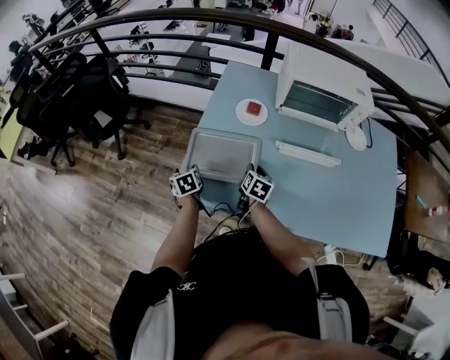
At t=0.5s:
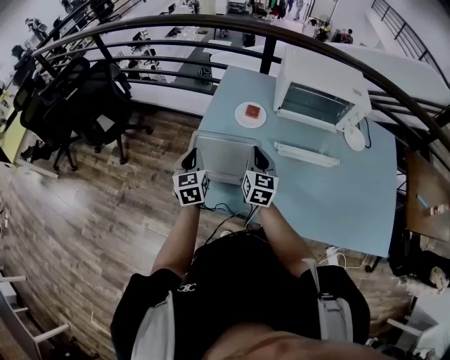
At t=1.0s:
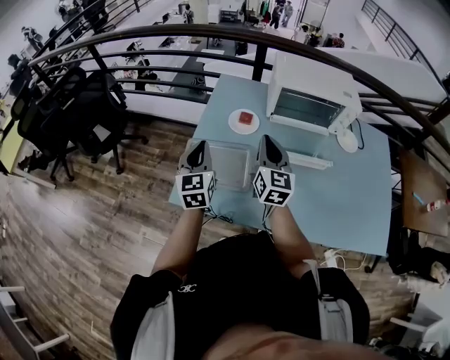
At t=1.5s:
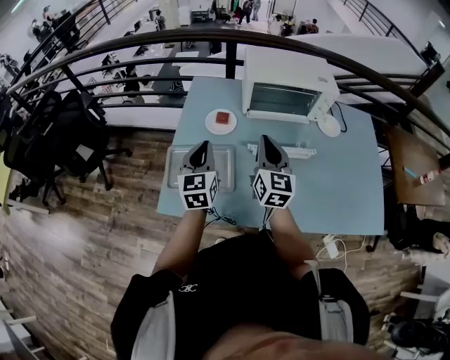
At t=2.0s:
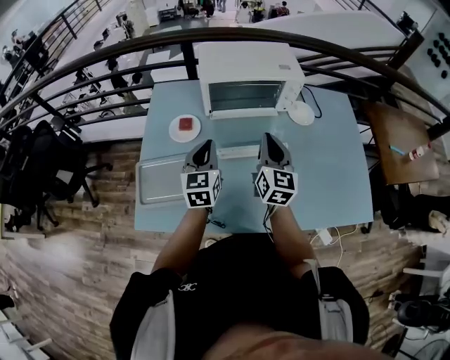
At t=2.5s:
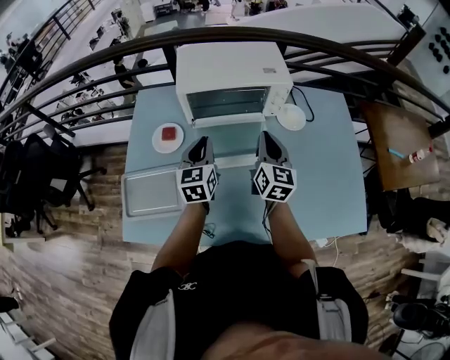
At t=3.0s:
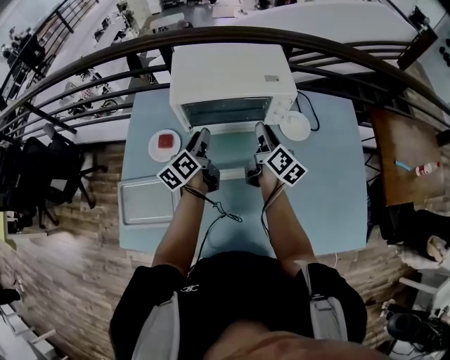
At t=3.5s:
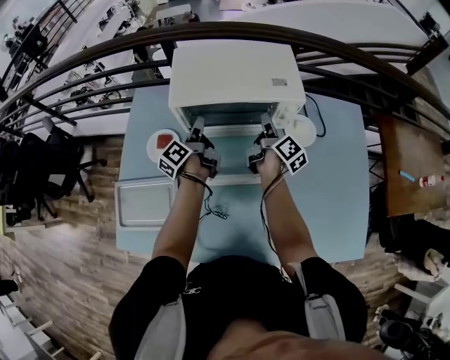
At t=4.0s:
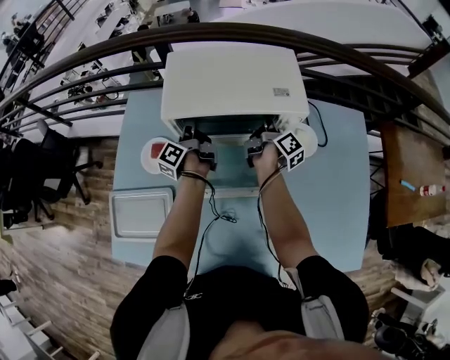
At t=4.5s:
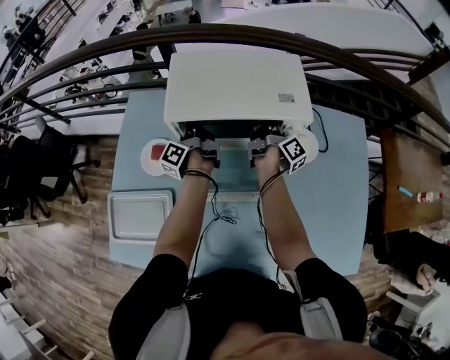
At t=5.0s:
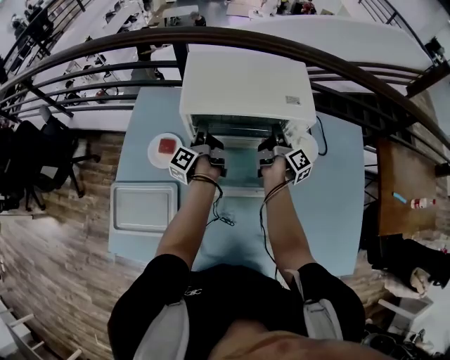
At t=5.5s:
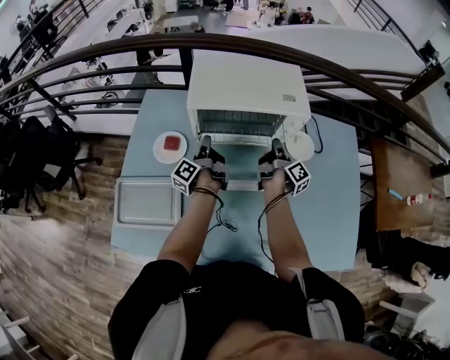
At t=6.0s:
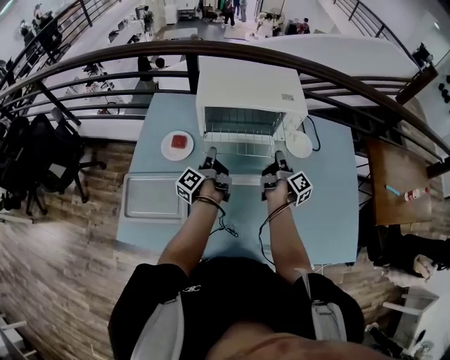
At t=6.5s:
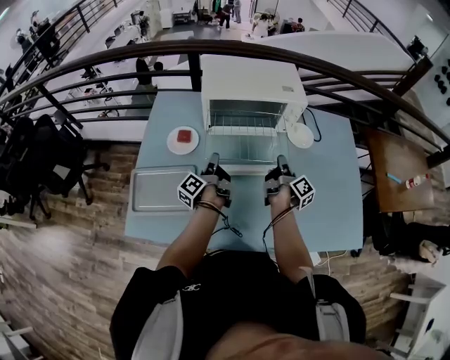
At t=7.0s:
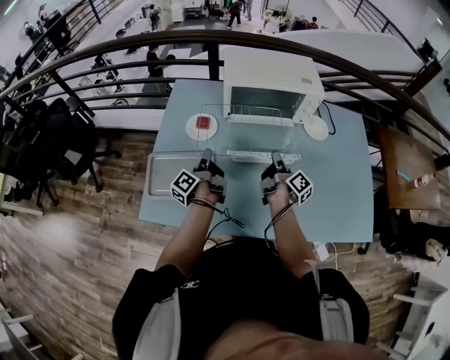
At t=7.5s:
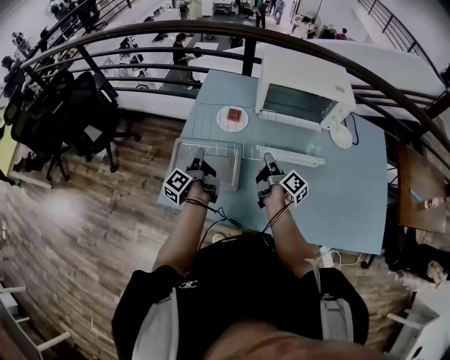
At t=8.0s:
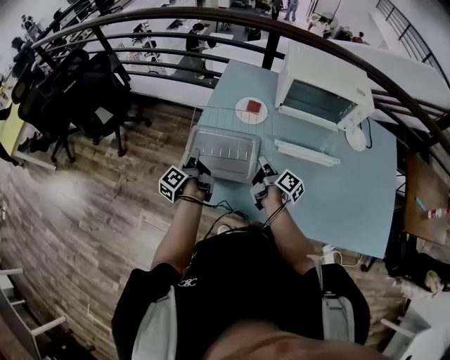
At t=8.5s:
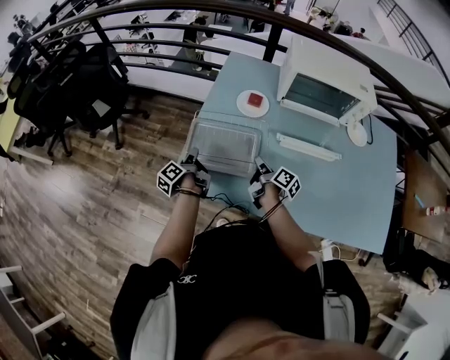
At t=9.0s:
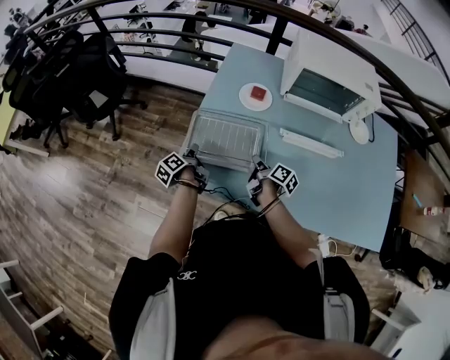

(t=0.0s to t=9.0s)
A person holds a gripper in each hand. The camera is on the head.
t=0.0s - t=2.0s: The right gripper travels upward and to the right by about 35 cm, points its fingers approximately 40 degrees further upward, and closes its fingers, while the left gripper heads to the right and upward, covering about 40 cm, tips its fingers upward by roughly 40 degrees, and closes its fingers.
t=2.0s - t=4.5s: The right gripper goes some 35 cm forward and downward, rotates around the line of its fingers by roughly 80 degrees, clockwise from behind, and opens, then closes once more, while the left gripper shifts roughly 30 cm forward, rotates around the line of its fingers by some 80 degrees, counterclockwise from behind, and opens and closes again.
t=4.5s - t=7.0s: The two grippers go roughly 30 cm backward and to the left.
t=7.0s - t=9.0s: Both grippers move to the left and downward, approximately 30 cm. The right gripper rotates some 30 degrees. Meanwhile the left gripper swivels some 30 degrees.

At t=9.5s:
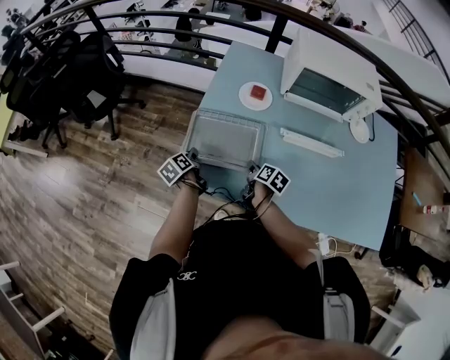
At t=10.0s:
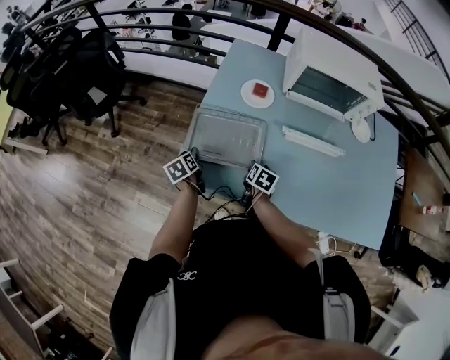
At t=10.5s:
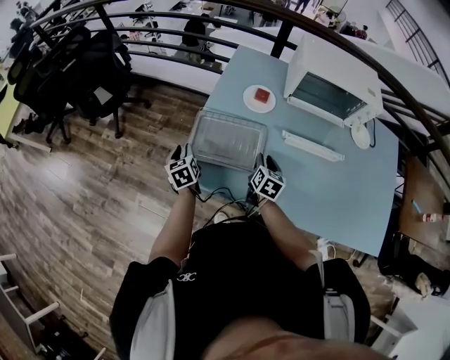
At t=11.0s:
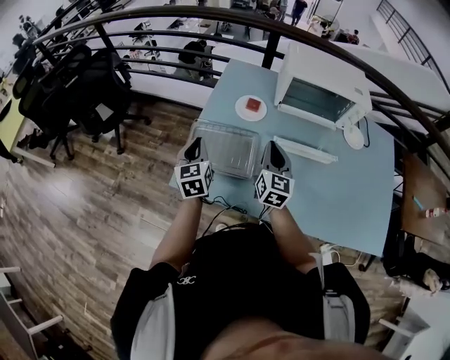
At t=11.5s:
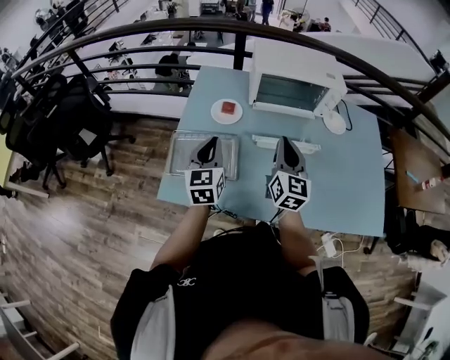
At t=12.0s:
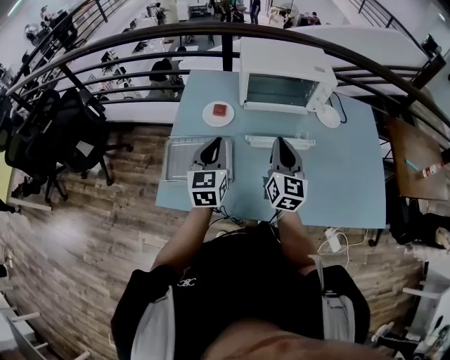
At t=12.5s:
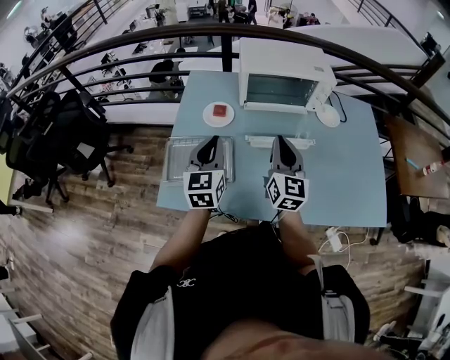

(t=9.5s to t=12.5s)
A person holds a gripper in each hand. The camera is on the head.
t=9.5s - t=11.0s: The two grippers go some 20 cm upward. The right gripper tilts its fingers approximately 40 degrees upward, and closes up, while the left gripper rotates around the line of its fingers by some 50 degrees, clockwise from behind.
t=11.0s - t=12.5s: The two grippers go some 15 cm to the right and upward. The left gripper changes its angle by approximately 20 degrees.

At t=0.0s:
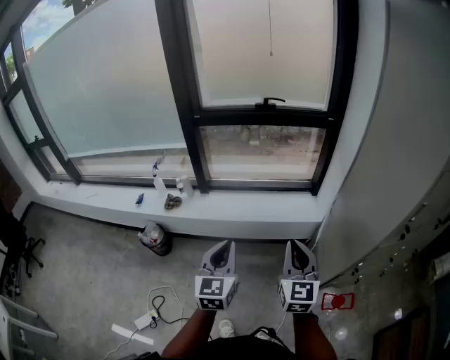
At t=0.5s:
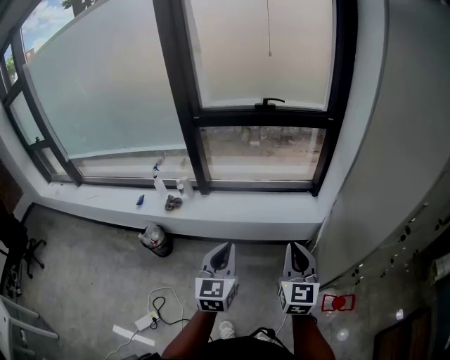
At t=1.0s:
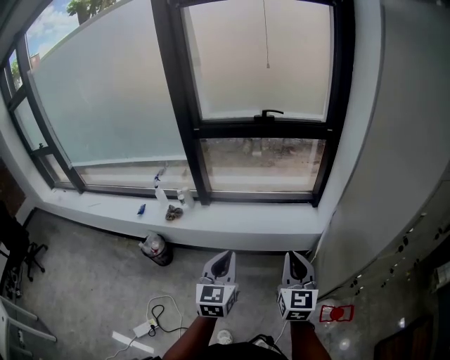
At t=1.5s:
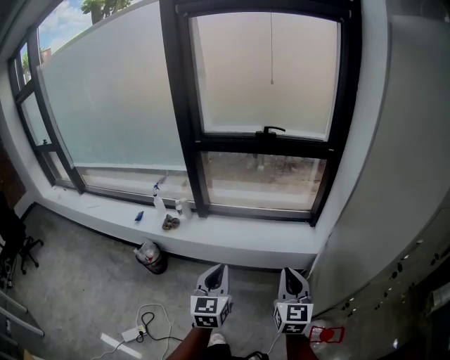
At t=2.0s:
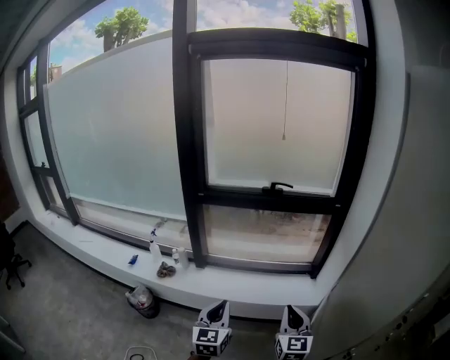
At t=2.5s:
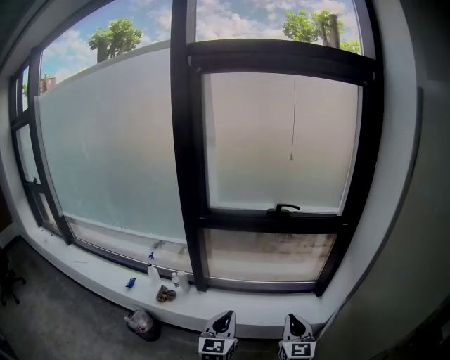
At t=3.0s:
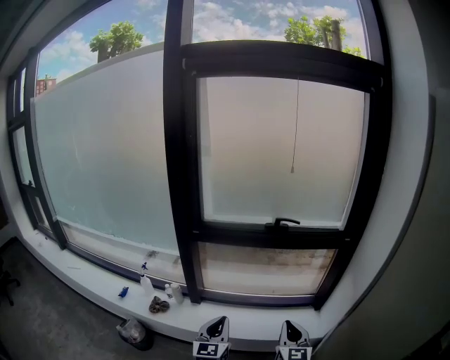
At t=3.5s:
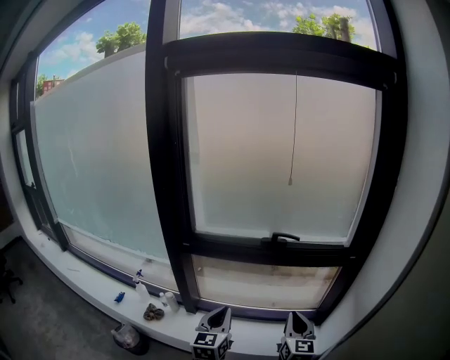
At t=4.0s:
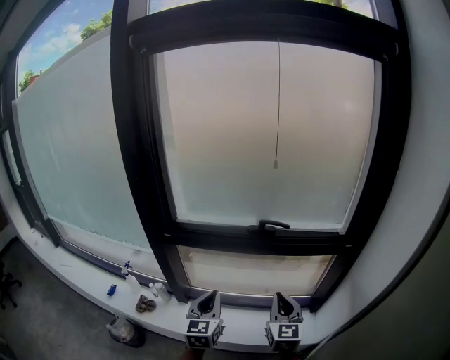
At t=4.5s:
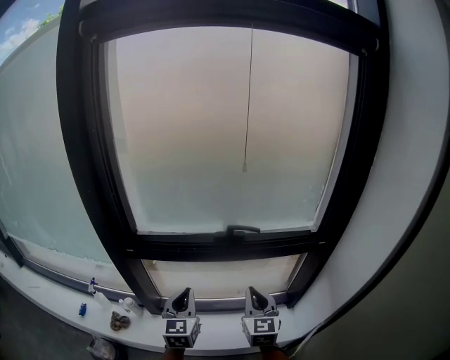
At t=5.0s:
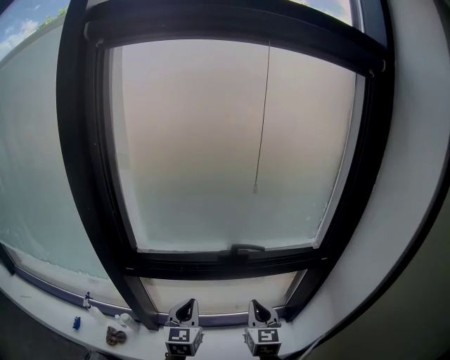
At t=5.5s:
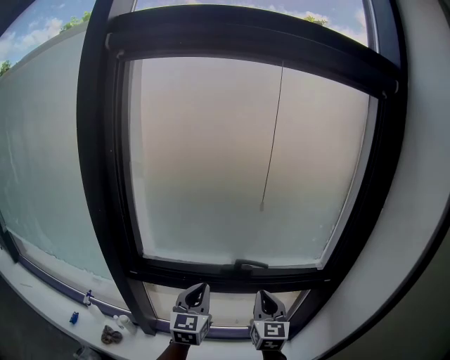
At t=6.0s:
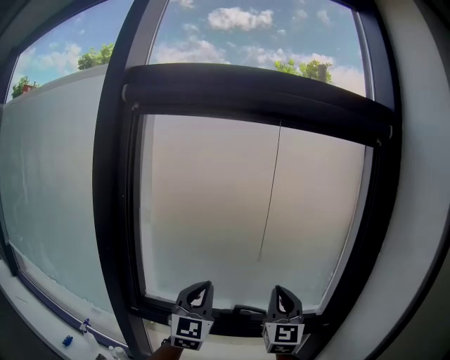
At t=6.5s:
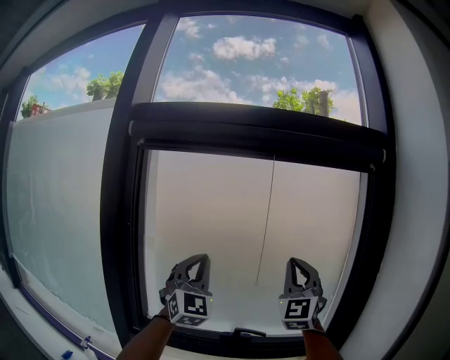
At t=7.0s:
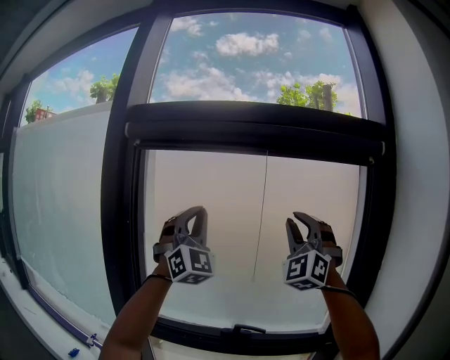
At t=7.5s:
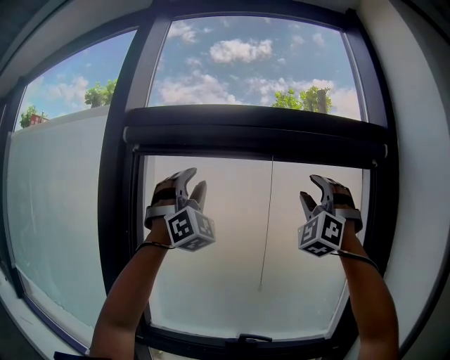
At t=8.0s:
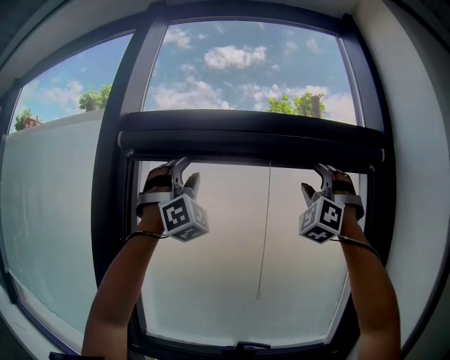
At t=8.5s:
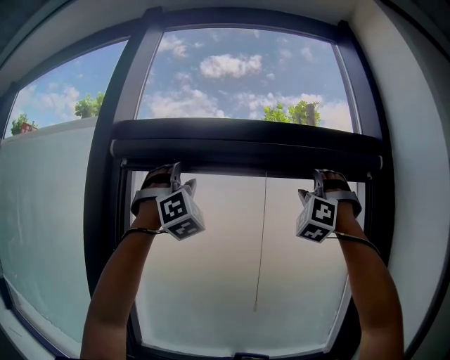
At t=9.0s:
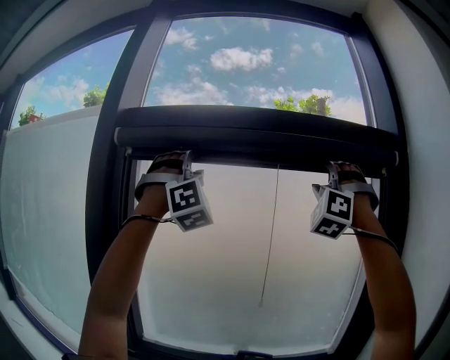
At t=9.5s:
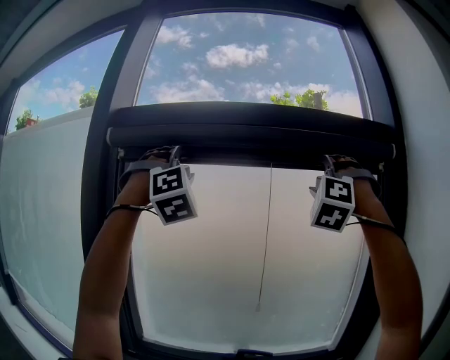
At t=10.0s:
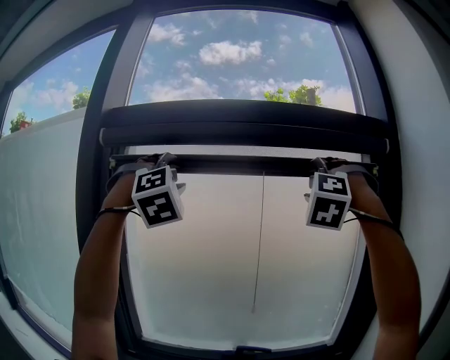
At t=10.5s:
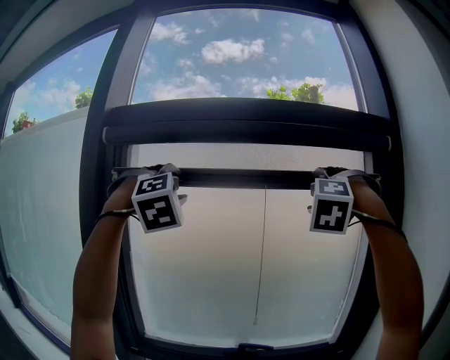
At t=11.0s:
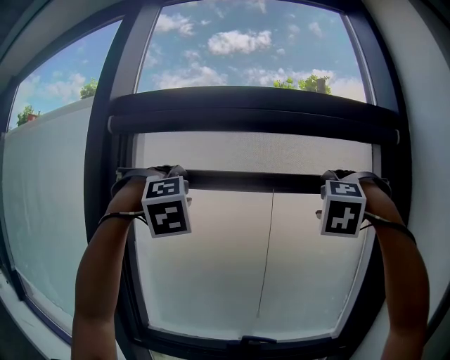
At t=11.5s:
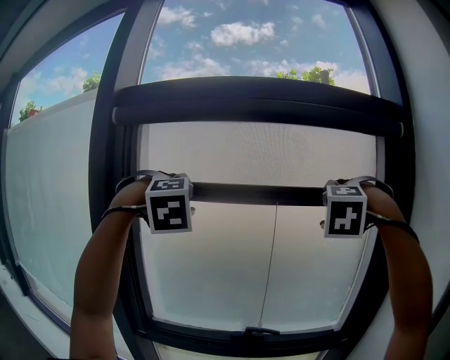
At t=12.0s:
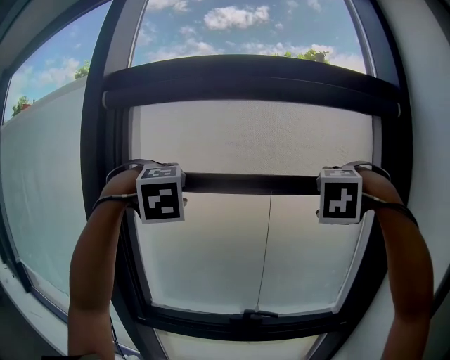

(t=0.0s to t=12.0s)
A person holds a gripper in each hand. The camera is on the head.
t=0.0s - t=2.0s: Both grippers move forward, approximately 15 cm.
t=2.0s - t=4.0s: Both grippers move forward, approximately 35 cm.
t=4.0s - t=6.0s: Both grippers travel together upward and forward, roughly 30 cm. The right gripper swivels roughly 30 degrees; the left gripper rotates approximately 30 degrees.
t=6.0s - t=8.0s: The two grippers go some 40 cm upward. The right gripper twists about 70 degrees counterclockwise, seen from behind, and opens up. Meanwhile the left gripper rolls clockwise, seen from behind, by about 70 degrees, and opens up.
t=8.0s - t=10.0s: The left gripper tilts its fingers approximately 30 degrees downward. Meanwhile the right gripper angles its fingers downward, by about 30 degrees.
t=10.0s - t=12.0s: The grippers both shift downward by about 15 cm. The left gripper tips its fingers downward by roughly 30 degrees. The right gripper points its fingers roughly 30 degrees further downward.

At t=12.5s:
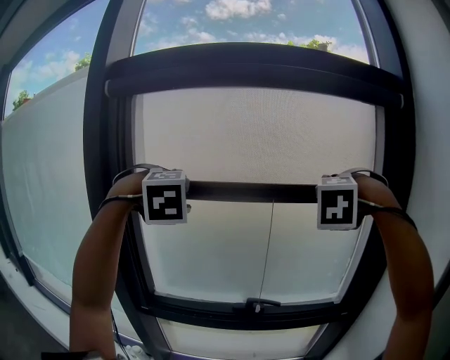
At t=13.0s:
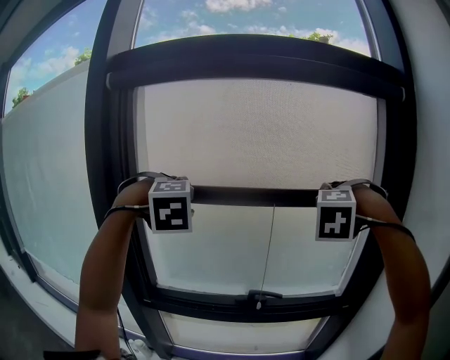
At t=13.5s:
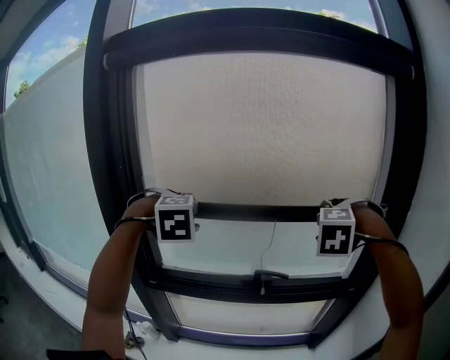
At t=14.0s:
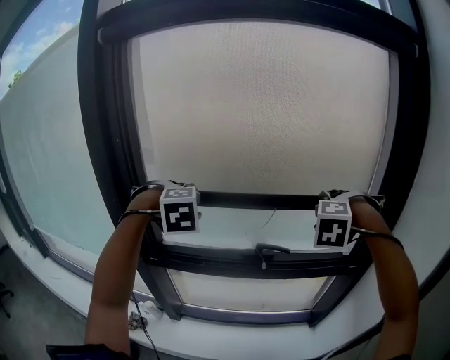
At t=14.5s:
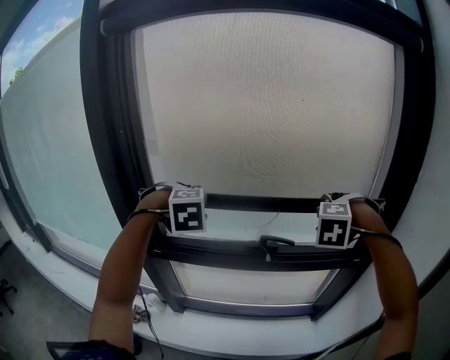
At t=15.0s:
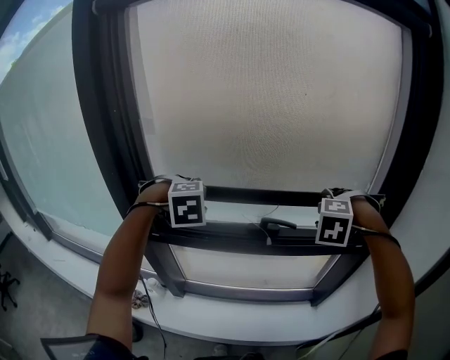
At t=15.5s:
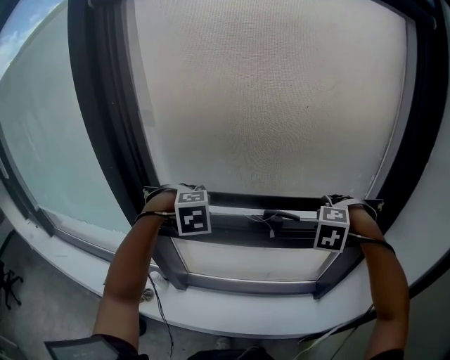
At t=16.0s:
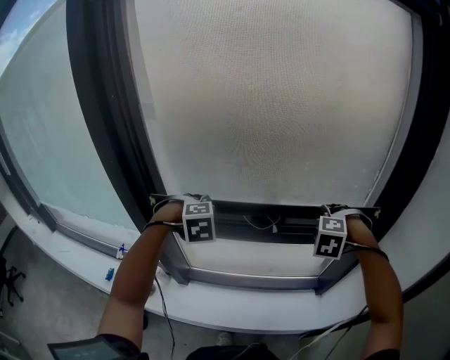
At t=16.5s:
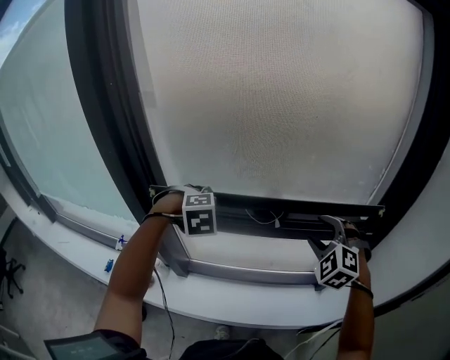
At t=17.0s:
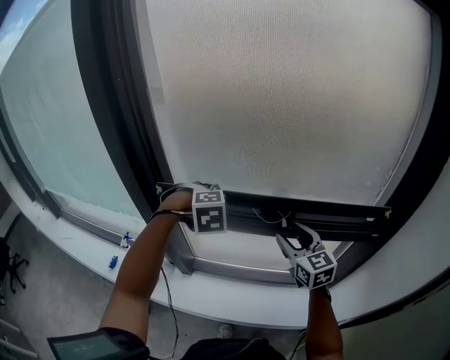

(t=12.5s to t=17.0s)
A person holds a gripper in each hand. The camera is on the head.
t=12.5s - t=14.5s: Both grippers move downward, some 25 cm.
t=14.5s - t=17.0s: The left gripper moves downward, about 15 cm. The right gripper is displaced downward and to the left by roughly 20 cm, and tips its fingers upward by approximately 40 degrees.
